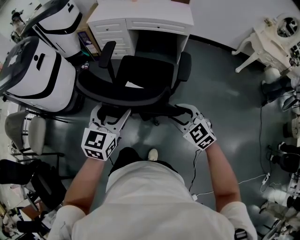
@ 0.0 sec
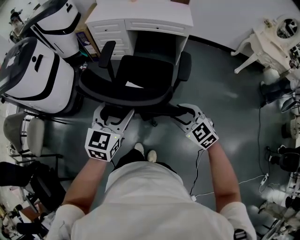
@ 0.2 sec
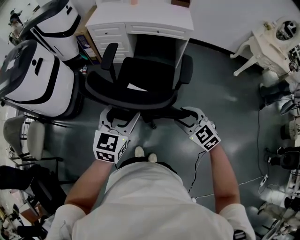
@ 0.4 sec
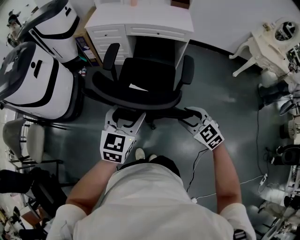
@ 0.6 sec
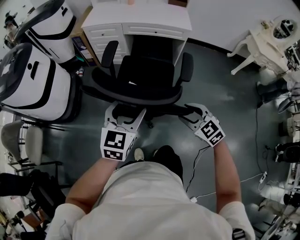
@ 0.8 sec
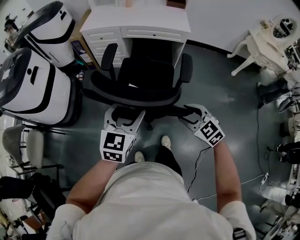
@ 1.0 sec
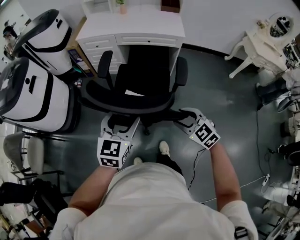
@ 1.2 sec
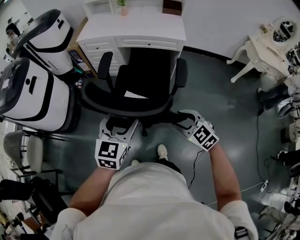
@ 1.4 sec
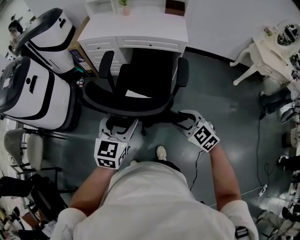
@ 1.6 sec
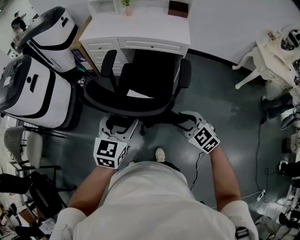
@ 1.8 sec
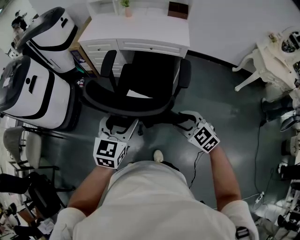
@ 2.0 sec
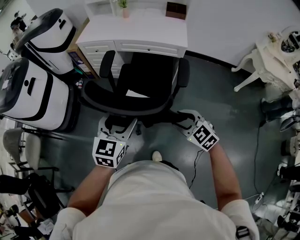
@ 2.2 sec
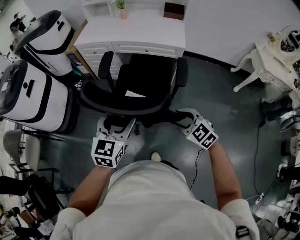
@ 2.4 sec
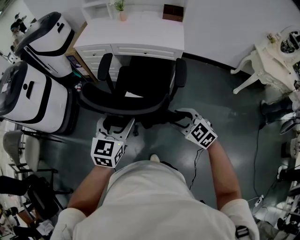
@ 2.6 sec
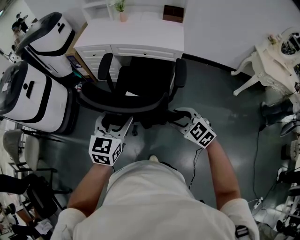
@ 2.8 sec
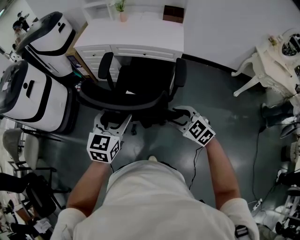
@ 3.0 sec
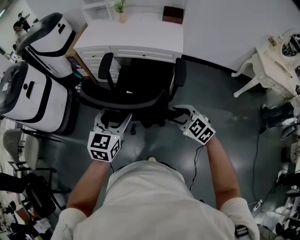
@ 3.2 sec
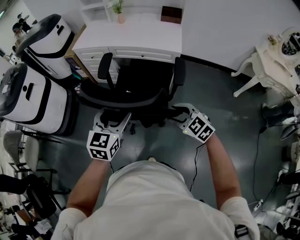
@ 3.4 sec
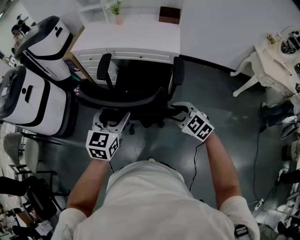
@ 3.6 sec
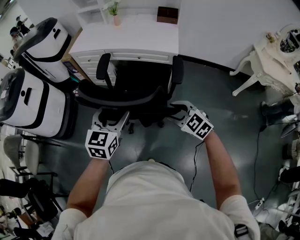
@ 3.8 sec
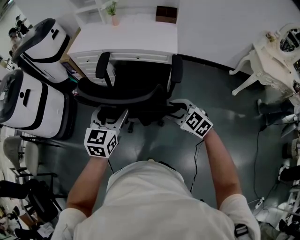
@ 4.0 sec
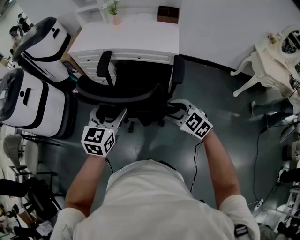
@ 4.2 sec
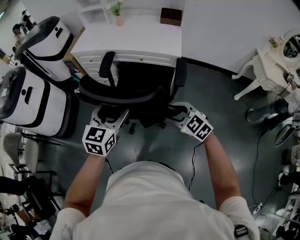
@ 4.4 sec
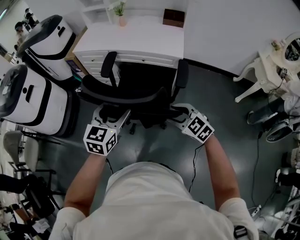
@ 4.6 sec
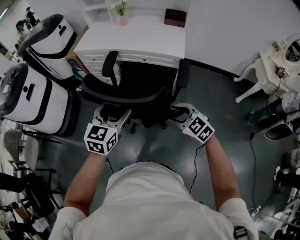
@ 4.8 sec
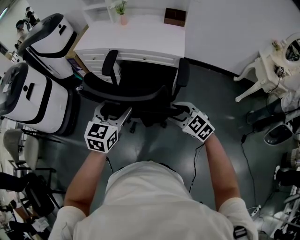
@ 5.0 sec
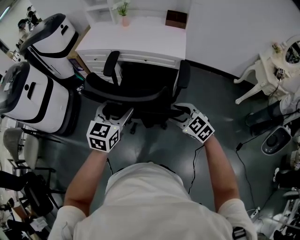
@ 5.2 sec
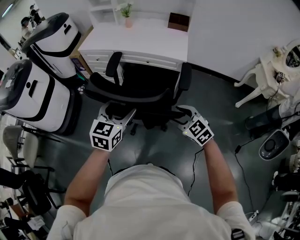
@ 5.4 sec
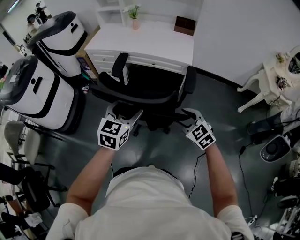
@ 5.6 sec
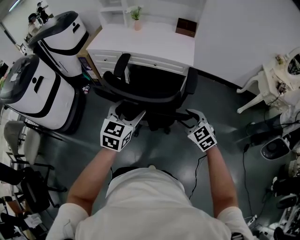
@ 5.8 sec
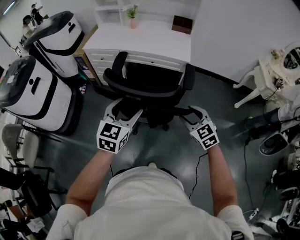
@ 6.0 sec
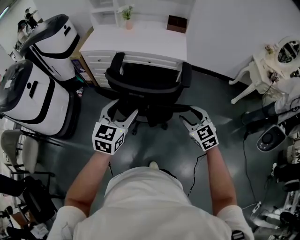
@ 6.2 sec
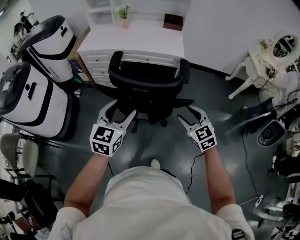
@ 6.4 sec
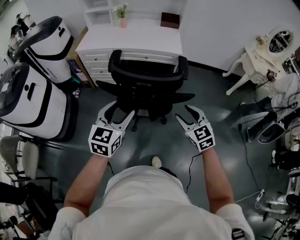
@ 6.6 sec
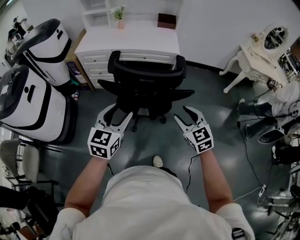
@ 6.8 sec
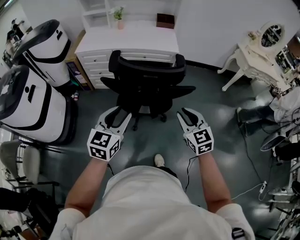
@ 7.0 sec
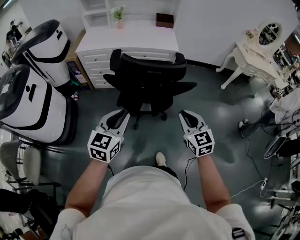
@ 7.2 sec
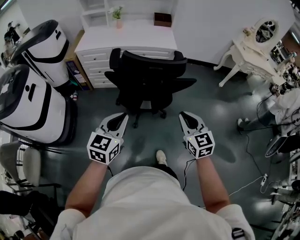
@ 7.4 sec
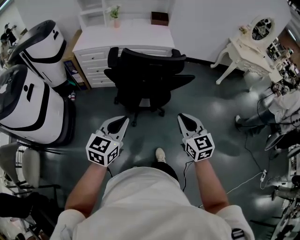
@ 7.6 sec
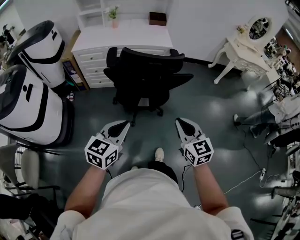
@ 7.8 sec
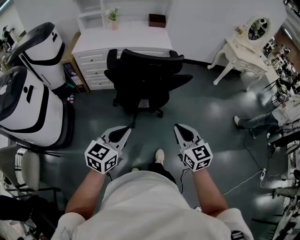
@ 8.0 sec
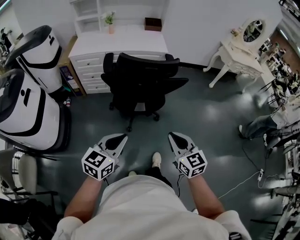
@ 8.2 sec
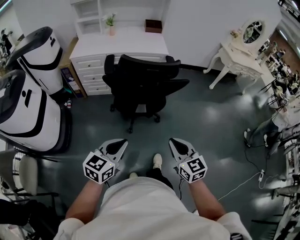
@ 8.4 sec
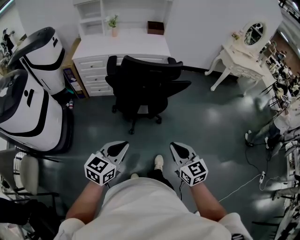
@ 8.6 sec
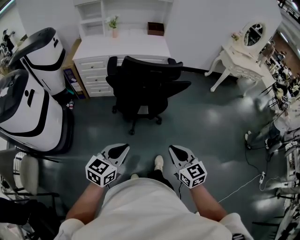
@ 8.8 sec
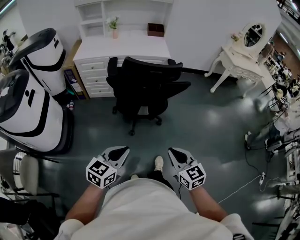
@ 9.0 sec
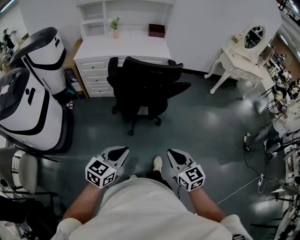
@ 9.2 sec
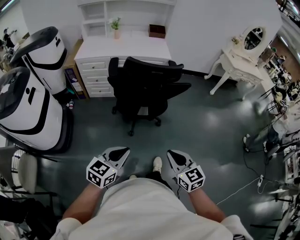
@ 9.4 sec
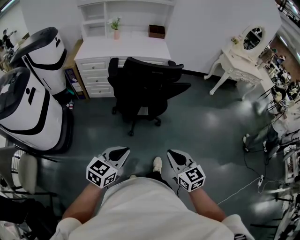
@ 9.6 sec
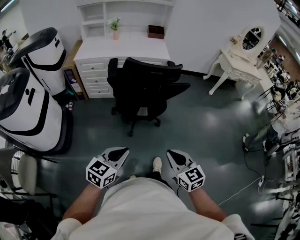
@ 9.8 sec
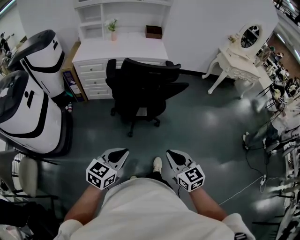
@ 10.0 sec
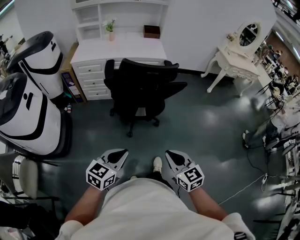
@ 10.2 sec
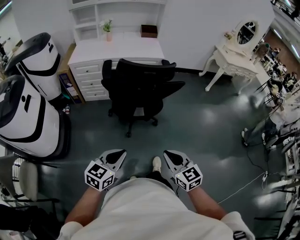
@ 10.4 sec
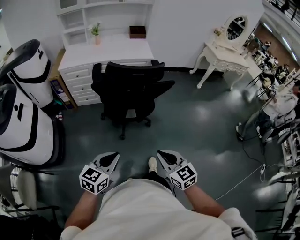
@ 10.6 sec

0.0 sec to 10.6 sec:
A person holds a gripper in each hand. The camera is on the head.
0.0 sec to 1.6 sec: The right gripper is displaced forward and to the right by about 20 cm, while the left gripper moves to the right and forward, roughly 15 cm.
1.6 sec to 3.0 sec: Both grippers travel together to the right and forward, about 10 cm.
3.0 sec to 4.6 sec: The grippers both shift forward by approximately 5 cm.
4.6 sec to 6.0 sec: The grippers move only a little.
6.0 sec to 7.6 sec: The grippers both shift backward and to the left by some 25 cm. The right gripper swivels approximately 30 degrees, and closes its fingers; the left gripper closes.
7.6 sec to 9.0 sec: Both grippers travel together backward, some 15 cm.
9.0 sec to 10.6 sec: The grippers make only small movements.

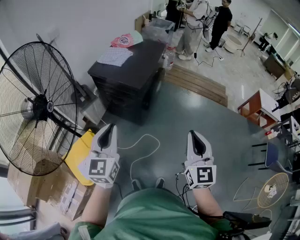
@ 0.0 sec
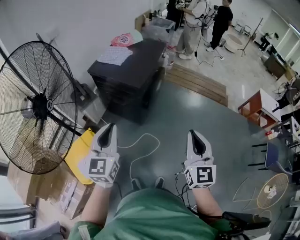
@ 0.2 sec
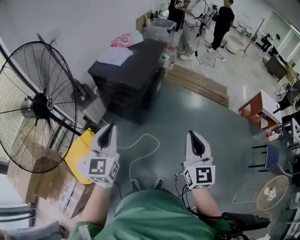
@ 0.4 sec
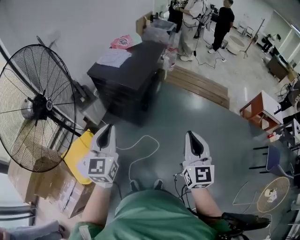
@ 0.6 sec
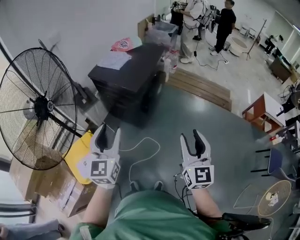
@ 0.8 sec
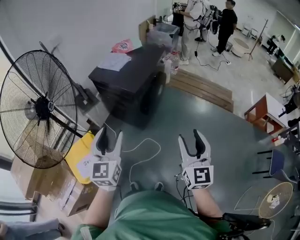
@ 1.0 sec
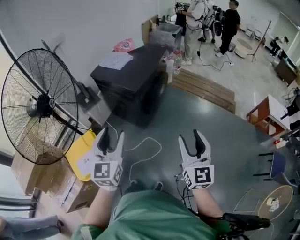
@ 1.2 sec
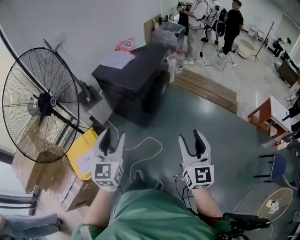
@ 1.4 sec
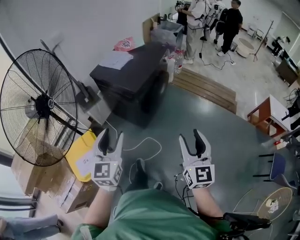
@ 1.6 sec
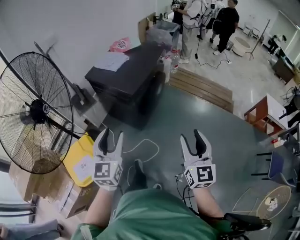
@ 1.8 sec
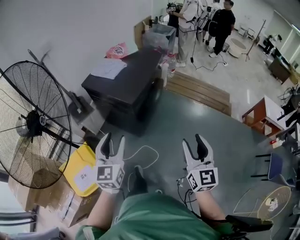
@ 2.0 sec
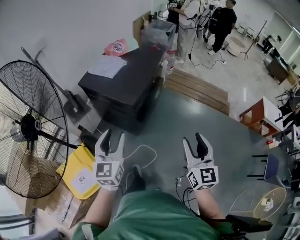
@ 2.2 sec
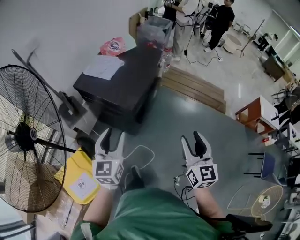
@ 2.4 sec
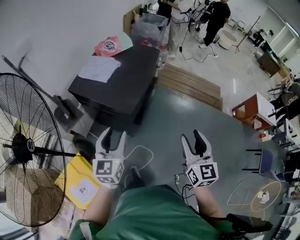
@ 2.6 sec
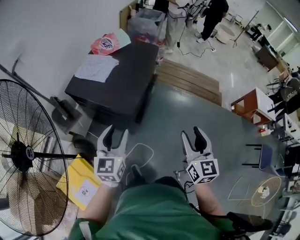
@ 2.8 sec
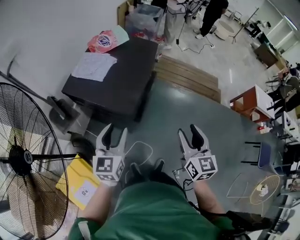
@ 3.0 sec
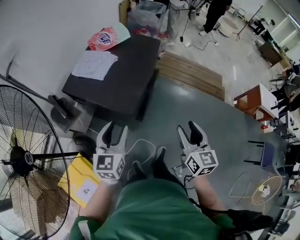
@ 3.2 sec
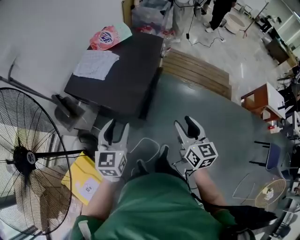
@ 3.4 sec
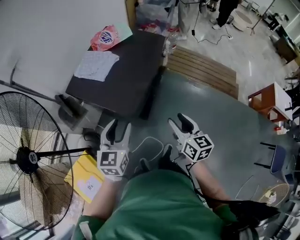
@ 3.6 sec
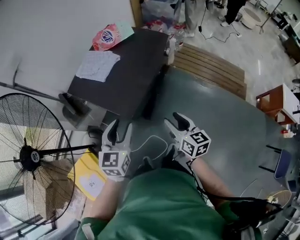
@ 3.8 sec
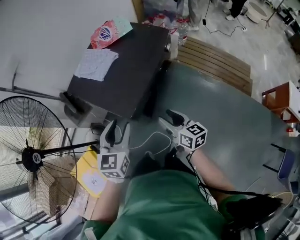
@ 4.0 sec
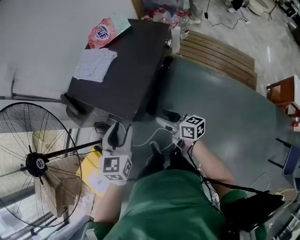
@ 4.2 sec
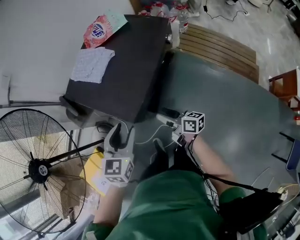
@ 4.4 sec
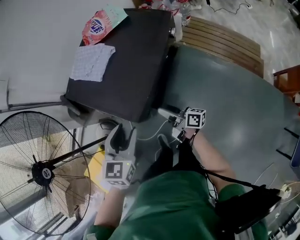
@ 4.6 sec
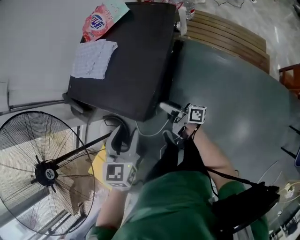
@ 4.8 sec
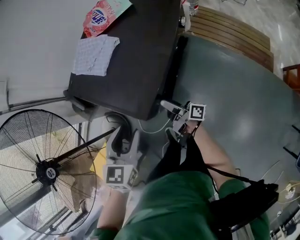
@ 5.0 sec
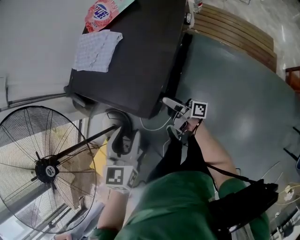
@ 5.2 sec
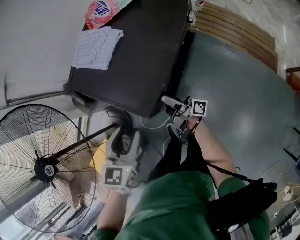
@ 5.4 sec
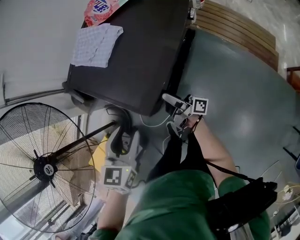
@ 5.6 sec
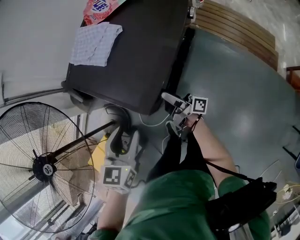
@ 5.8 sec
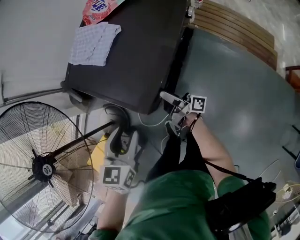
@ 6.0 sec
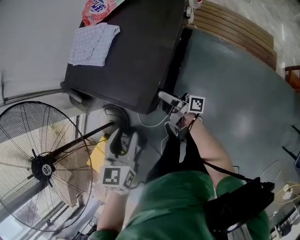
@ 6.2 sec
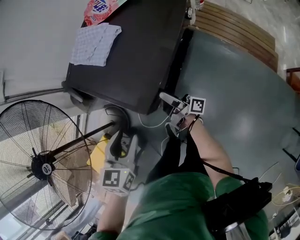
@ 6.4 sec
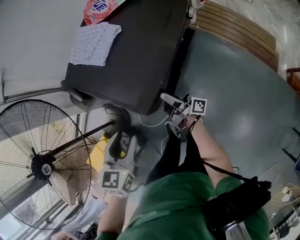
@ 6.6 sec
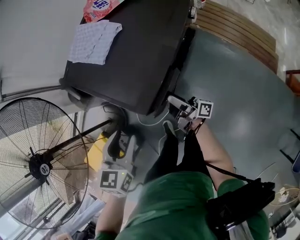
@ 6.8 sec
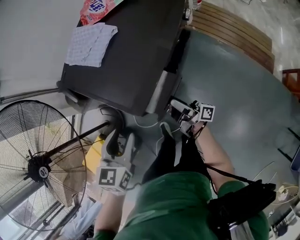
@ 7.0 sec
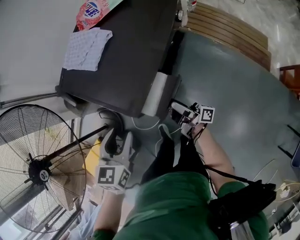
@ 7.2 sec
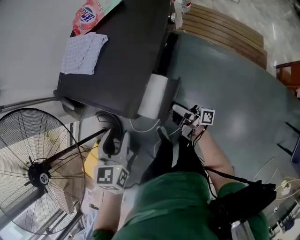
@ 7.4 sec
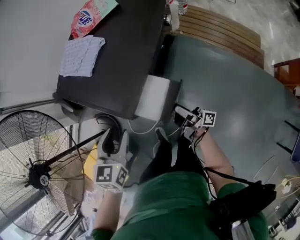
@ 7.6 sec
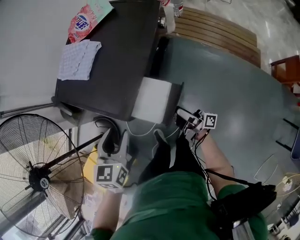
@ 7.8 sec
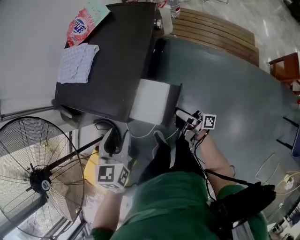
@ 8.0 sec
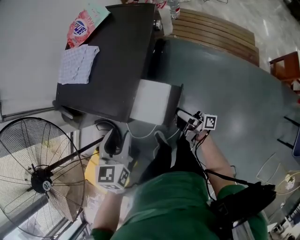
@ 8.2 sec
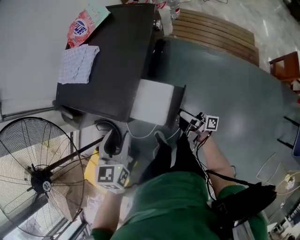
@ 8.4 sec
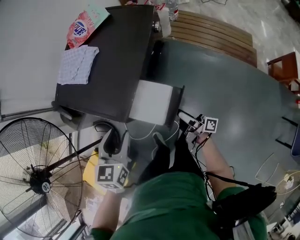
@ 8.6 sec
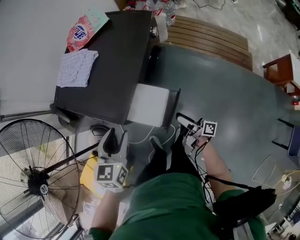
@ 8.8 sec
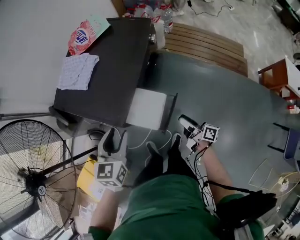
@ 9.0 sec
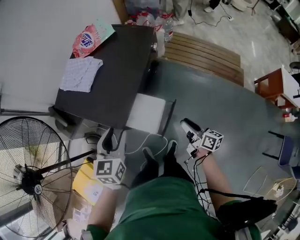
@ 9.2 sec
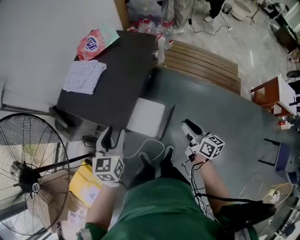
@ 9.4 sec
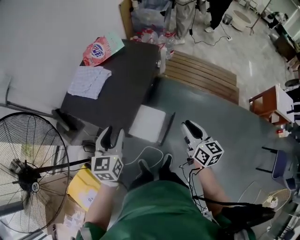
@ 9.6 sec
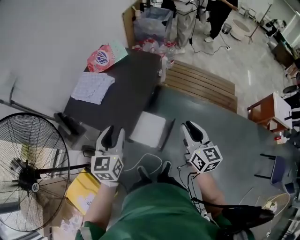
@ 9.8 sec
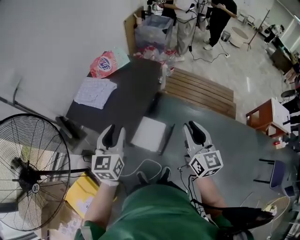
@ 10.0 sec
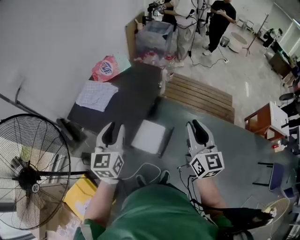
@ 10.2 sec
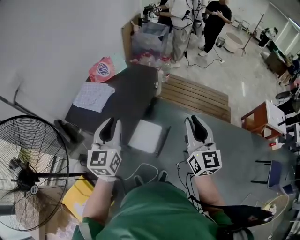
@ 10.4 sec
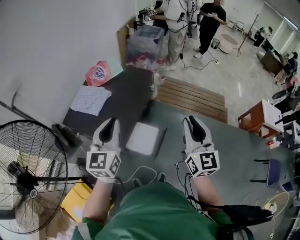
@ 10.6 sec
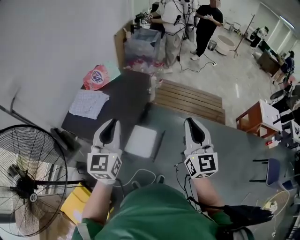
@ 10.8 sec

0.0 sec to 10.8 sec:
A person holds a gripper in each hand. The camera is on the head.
0.0 sec to 1.6 sec: Both grippers travel together to the right, approximately 10 cm. The right gripper opens; the left gripper opens up.
1.6 sec to 3.0 sec: The two grippers go roughly 30 cm forward.
3.0 sec to 4.6 sec: The left gripper ends up some 20 cm from where it was, and swivels some 20 degrees; the right gripper heads downward, covering roughly 30 cm, and turns by roughly 80 degrees.
4.6 sec to 6.2 sec: The left gripper travels to the left by approximately 5 cm; the right gripper goes about 5 cm forward, and swivels roughly 20 degrees.
6.2 sec to 7.8 sec: The right gripper travels to the right and backward by approximately 15 cm.
7.8 sec to 9.2 sec: The right gripper travels to the right and backward by some 10 cm, angles its fingers downward, by some 40 degrees, and closes.
9.2 sec to 10.8 sec: The left gripper shifts about 20 cm upward, rotates approximately 30 degrees, and closes. The right gripper moves upward, approximately 35 cm, and rotates around the line of its fingers by about 60 degrees, counterclockwise from behind.

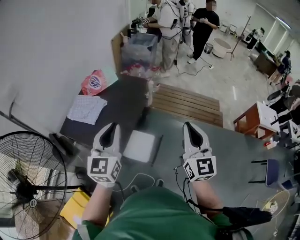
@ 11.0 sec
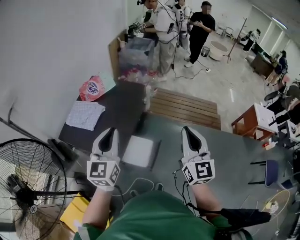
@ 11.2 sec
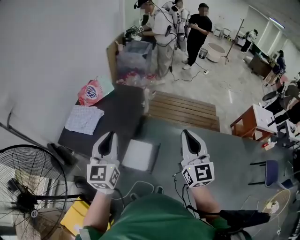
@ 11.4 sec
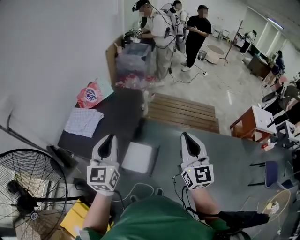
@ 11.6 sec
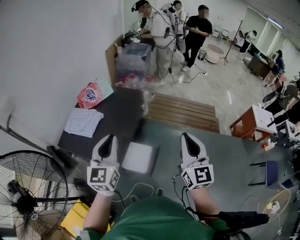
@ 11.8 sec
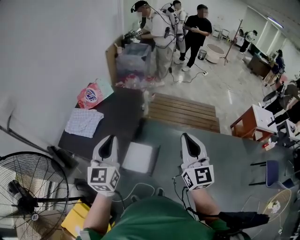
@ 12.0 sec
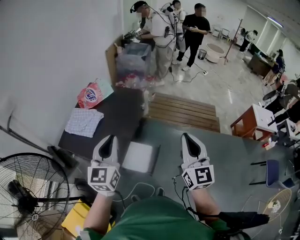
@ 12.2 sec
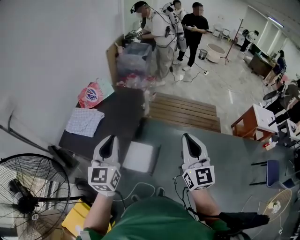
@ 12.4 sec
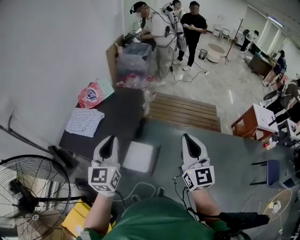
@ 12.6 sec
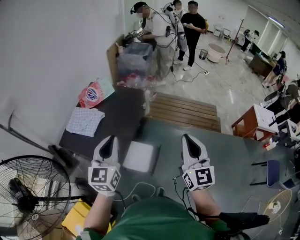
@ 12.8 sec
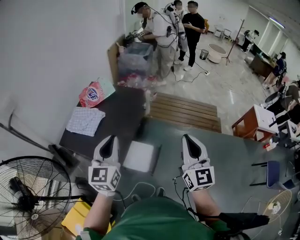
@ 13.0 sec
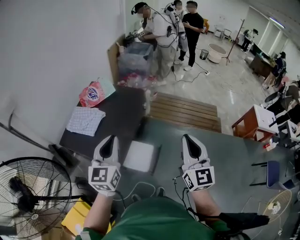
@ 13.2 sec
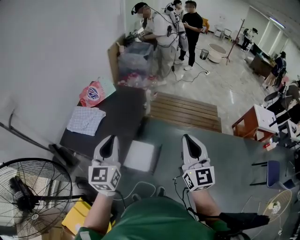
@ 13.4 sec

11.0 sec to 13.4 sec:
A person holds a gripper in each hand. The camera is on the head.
11.0 sec to 12.2 sec: The grippers make only small movements.
12.2 sec to 13.4 sec: The two grippers keep their place.
